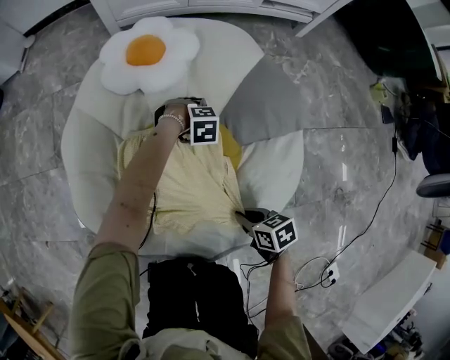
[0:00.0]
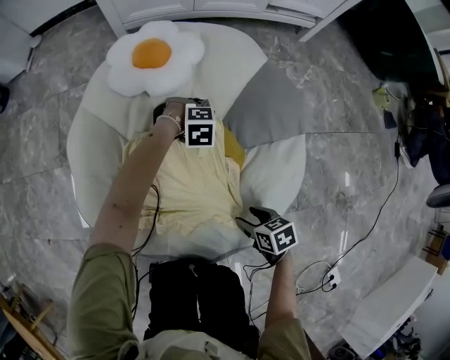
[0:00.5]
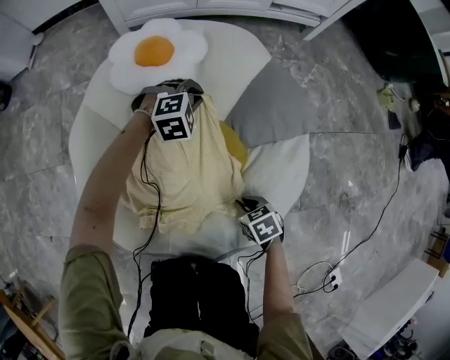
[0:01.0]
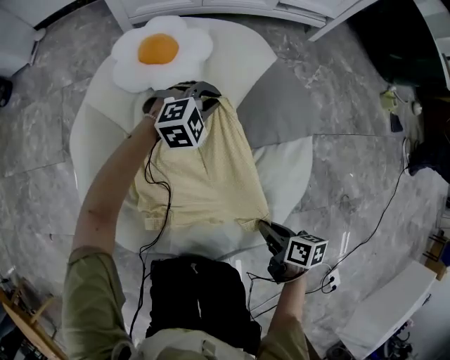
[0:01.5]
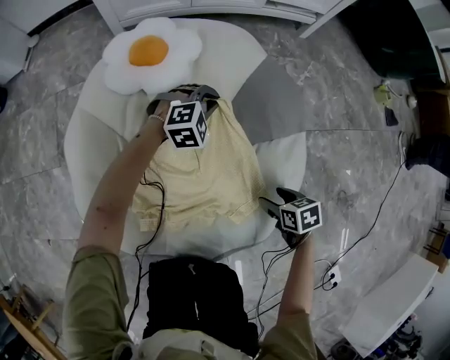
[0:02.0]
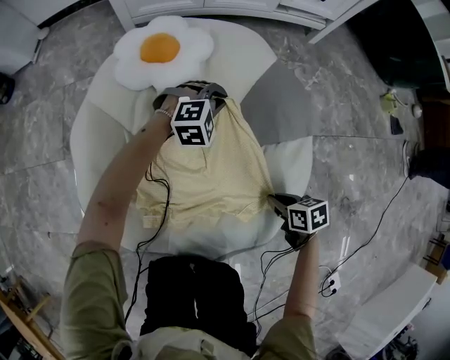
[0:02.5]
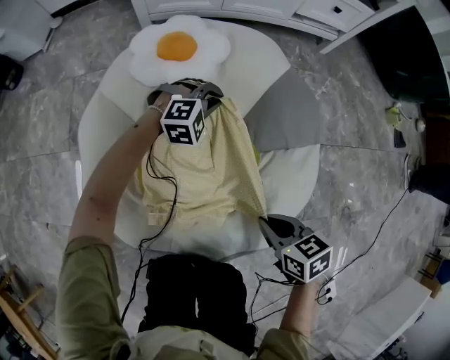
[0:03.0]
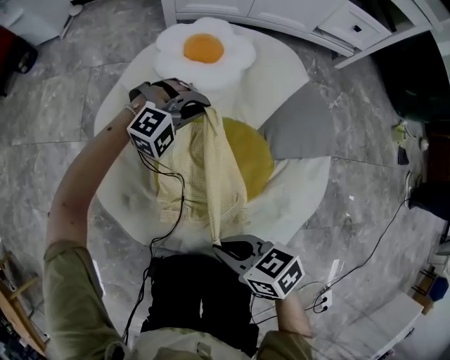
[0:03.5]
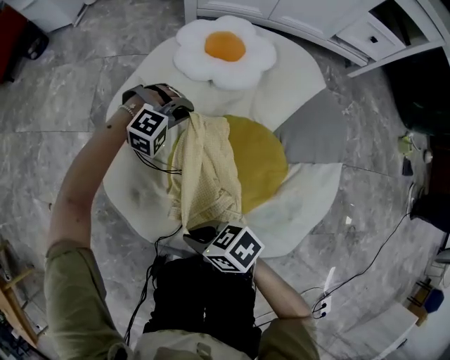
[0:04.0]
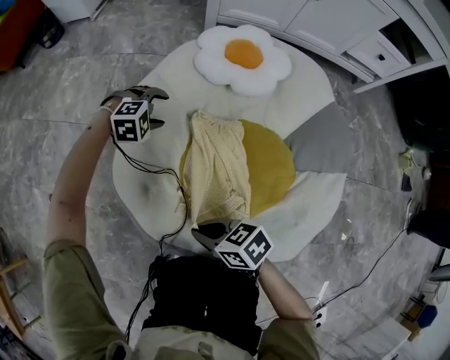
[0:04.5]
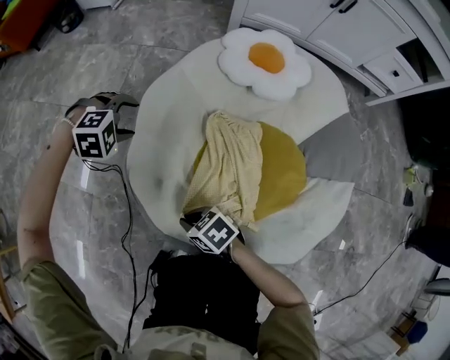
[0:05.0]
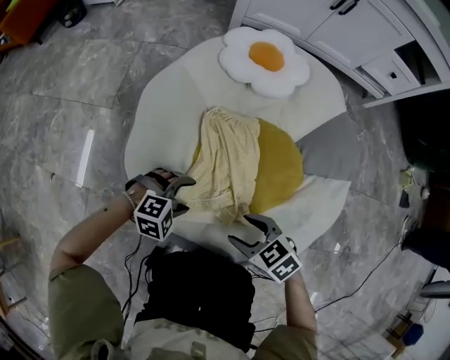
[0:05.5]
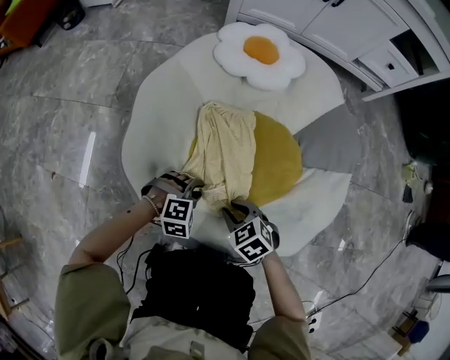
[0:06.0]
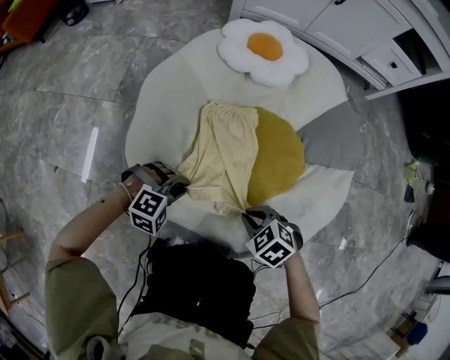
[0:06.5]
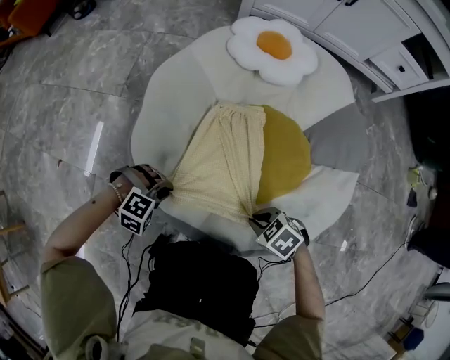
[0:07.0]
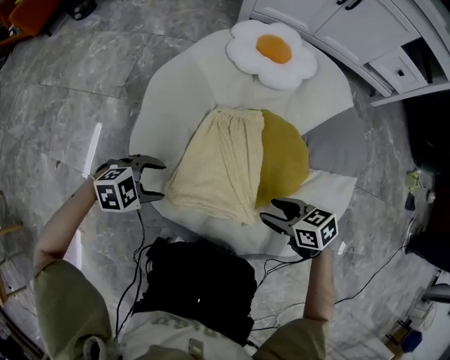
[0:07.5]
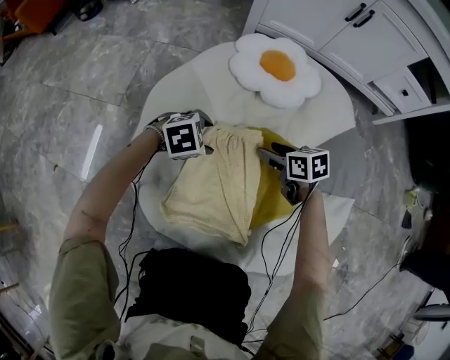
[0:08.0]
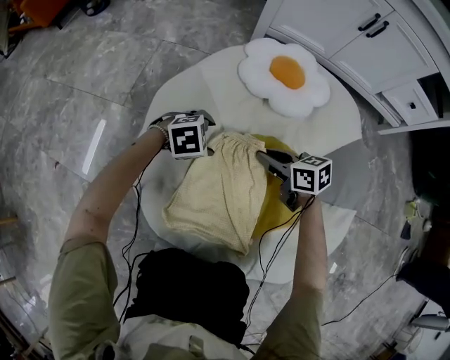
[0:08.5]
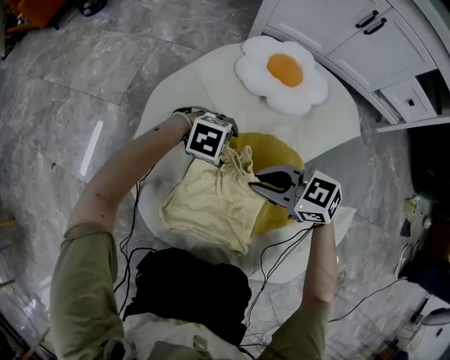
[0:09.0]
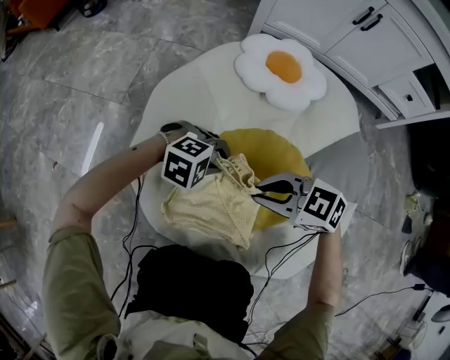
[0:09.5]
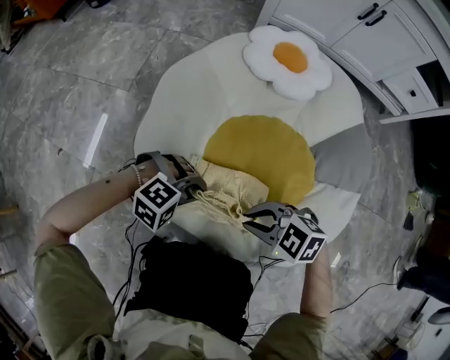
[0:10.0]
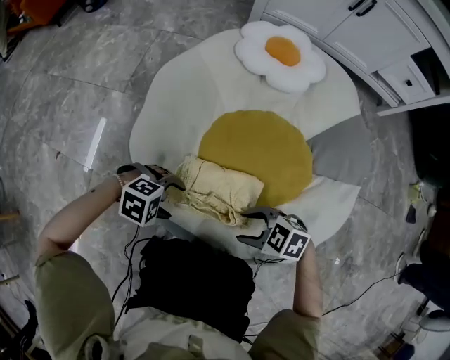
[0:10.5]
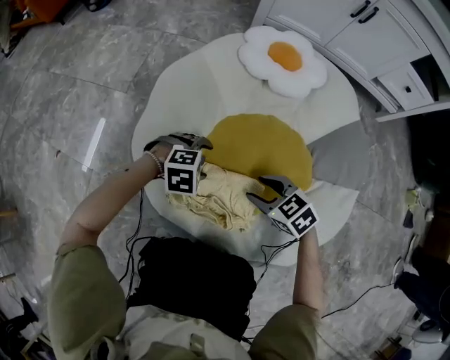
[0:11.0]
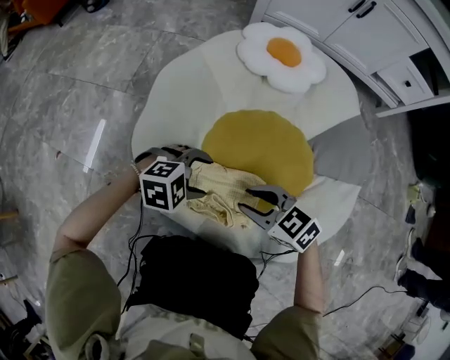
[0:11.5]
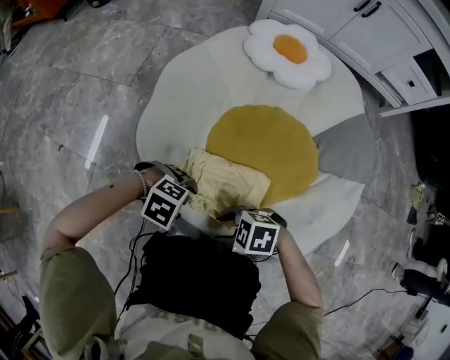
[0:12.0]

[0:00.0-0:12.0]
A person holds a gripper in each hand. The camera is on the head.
0:00.0 to 0:02.0: The left gripper shifts some 10 cm upward, angles its fingers upward, by approximately 30 degrees, and closes; the right gripper travels upward and back again, approximately 5 cm each way, and opens up.
0:02.0 to 0:04.0: The left gripper ends up approximately 25 cm from where it was, and swivels about 20 degrees. Meanwhile the right gripper changes place by about 40 cm, rotates about 50 degrees, and closes.
0:04.0 to 0:06.0: The right gripper swings up and down, some 10 cm each way, with 2 reversals, rotates approximately 40 degrees, and opens, then closes once more, while the left gripper ends up roughly 30 cm from where it was, changes its angle by roughly 30 degrees, and opens, then closes once more.
0:06.0 to 0:08.0: The left gripper shifts by some 20 cm, turns by some 30 degrees, and opens its fingers, while the right gripper ends up approximately 25 cm from where it was, changes its angle by about 30 degrees, and opens.
0:08.0 to 0:10.0: The left gripper shifts by approximately 20 cm, changes its angle by about 40 degrees, and closes. The right gripper moves roughly 25 cm, twists some 50 degrees counterclockwise, seen from behind, and closes.
0:10.0 to 0:12.0: The right gripper goes up and down, approximately 5 cm each way, reversing 2 times, and opens, while the left gripper moves up and down over about 5 cm, changing direction 2 times, turns by roughly 30 degrees, and opens its fingers.

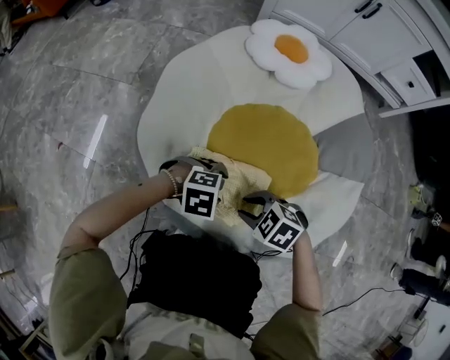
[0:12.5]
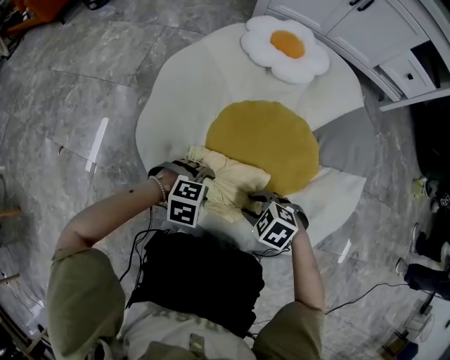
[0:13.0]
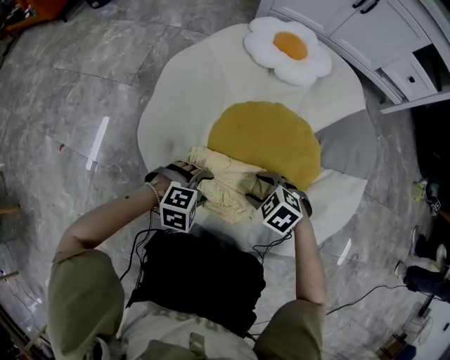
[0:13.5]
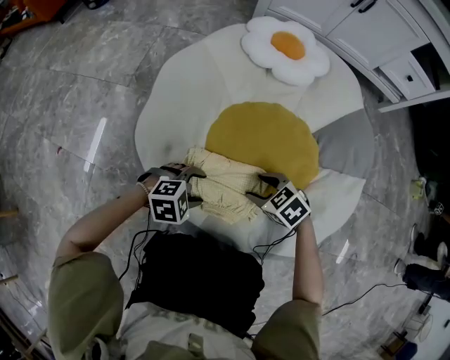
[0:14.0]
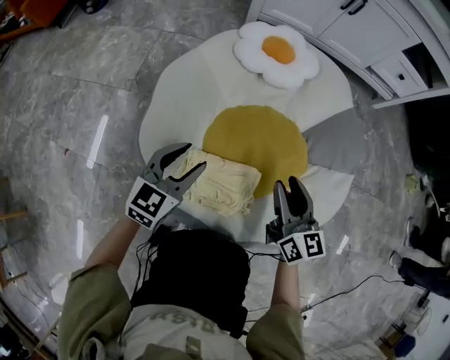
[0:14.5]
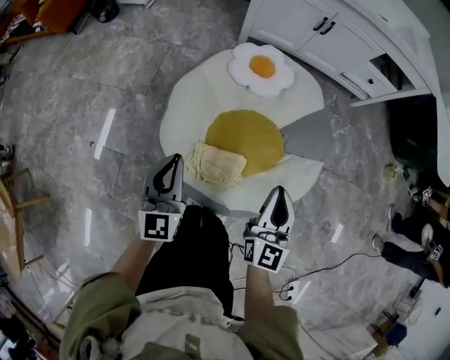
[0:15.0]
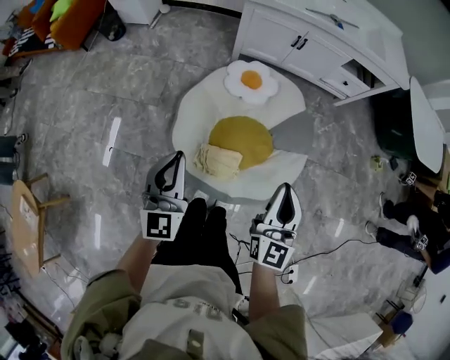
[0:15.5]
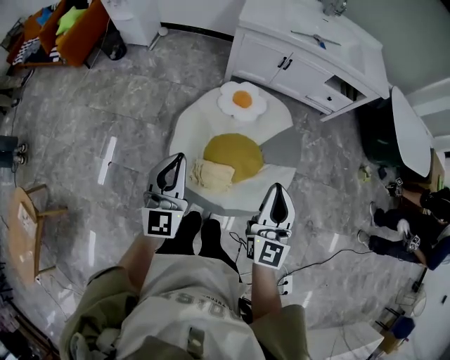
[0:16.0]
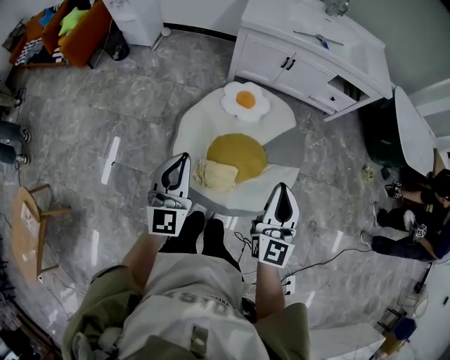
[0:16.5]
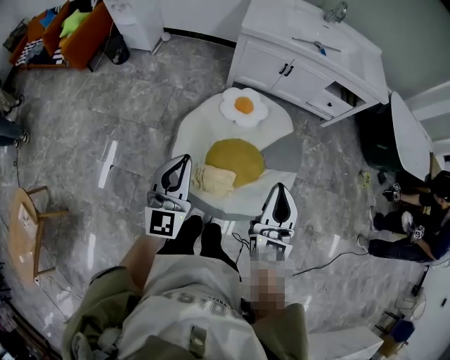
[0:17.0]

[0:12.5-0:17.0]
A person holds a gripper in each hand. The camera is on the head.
0:12.5 to 0:14.5: Both grippers move upward, about 15 cm. The left gripper tilts its fingers about 40 degrees upward. The right gripper angles its fingers upward, by about 50 degrees.
0:14.5 to 0:17.0: The grippers both shift upward by some 60 cm. The right gripper rotates approximately 30 degrees, and closes up; the left gripper turns by about 30 degrees, and closes.

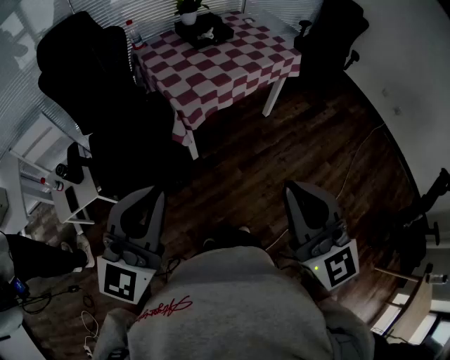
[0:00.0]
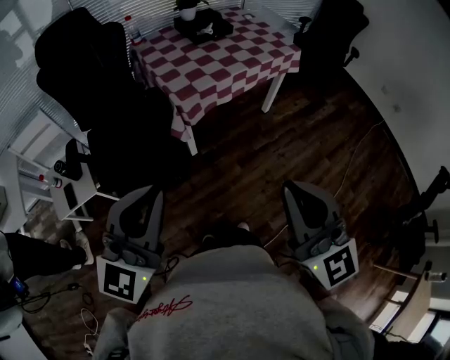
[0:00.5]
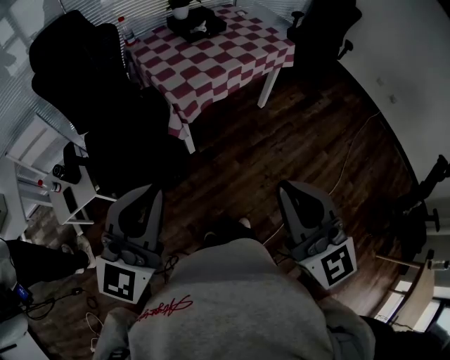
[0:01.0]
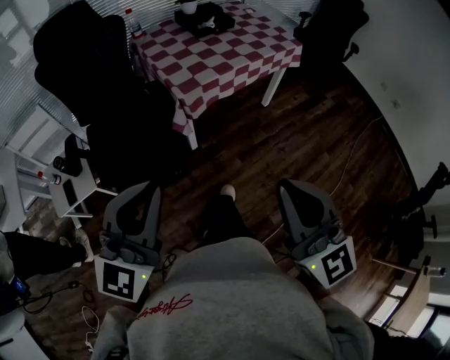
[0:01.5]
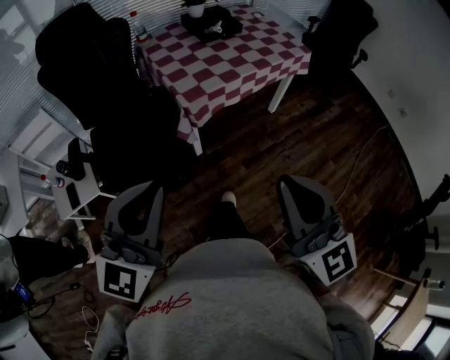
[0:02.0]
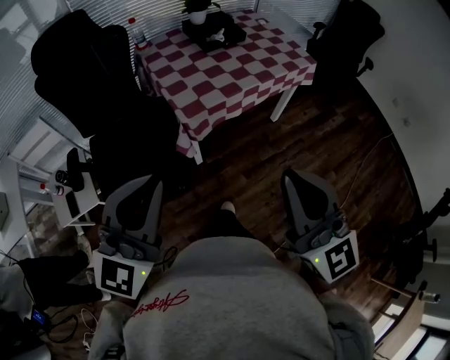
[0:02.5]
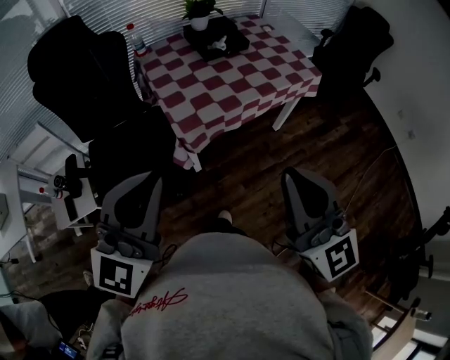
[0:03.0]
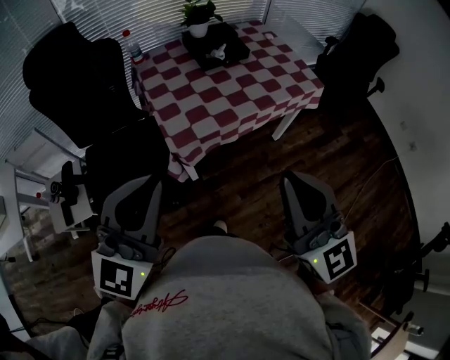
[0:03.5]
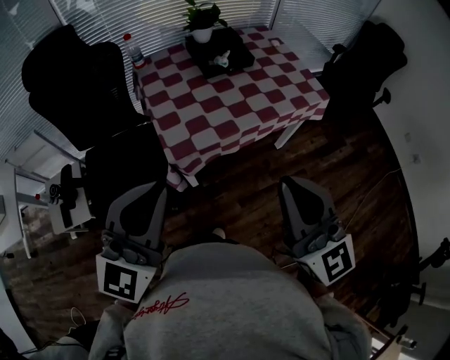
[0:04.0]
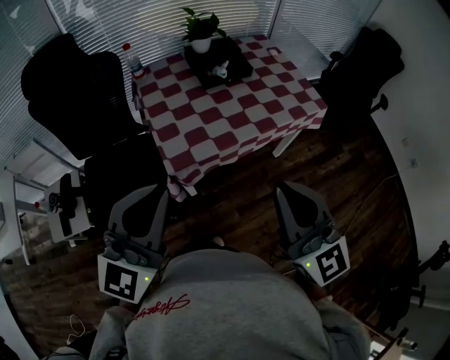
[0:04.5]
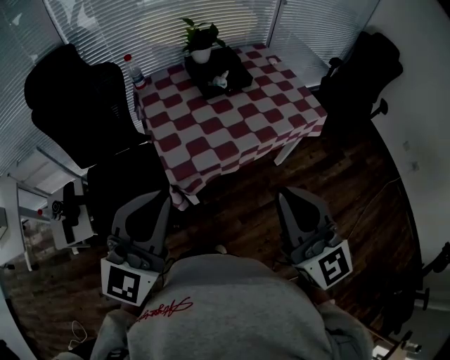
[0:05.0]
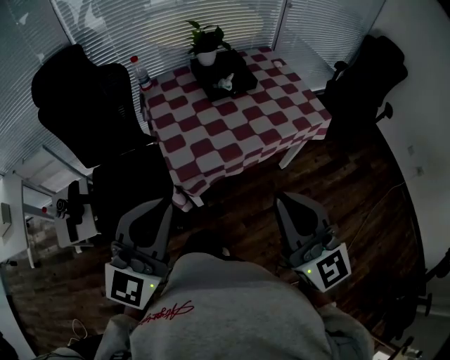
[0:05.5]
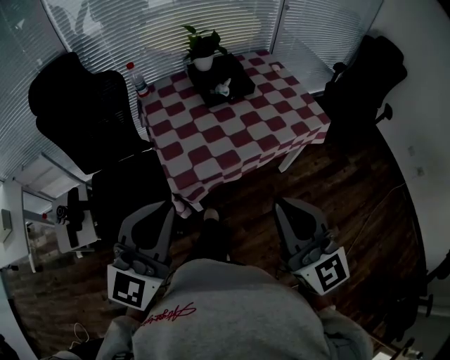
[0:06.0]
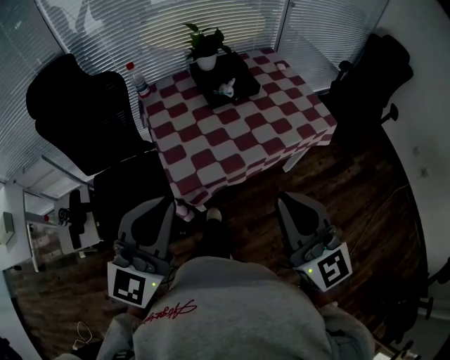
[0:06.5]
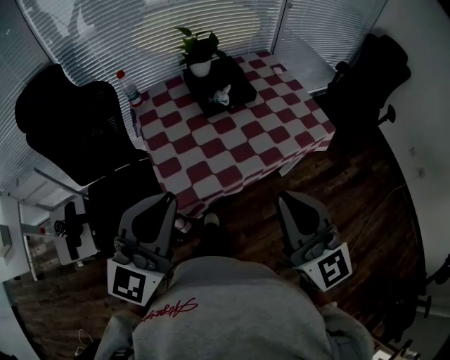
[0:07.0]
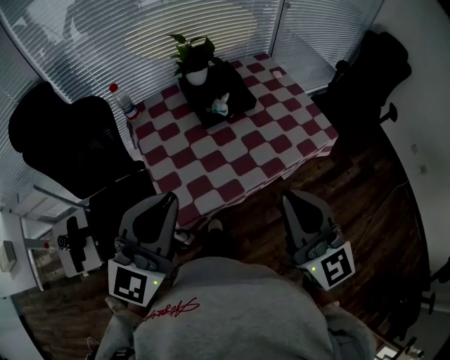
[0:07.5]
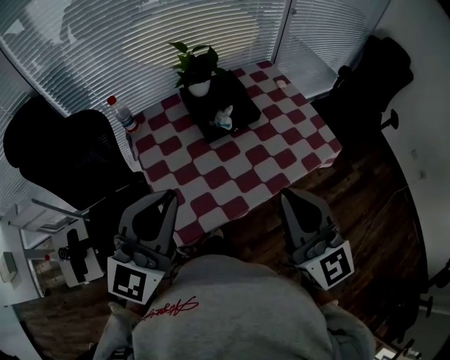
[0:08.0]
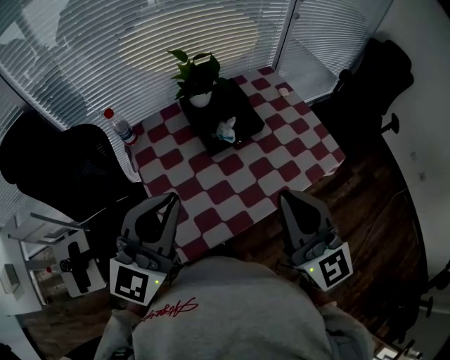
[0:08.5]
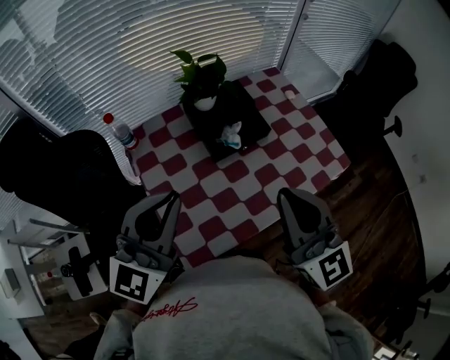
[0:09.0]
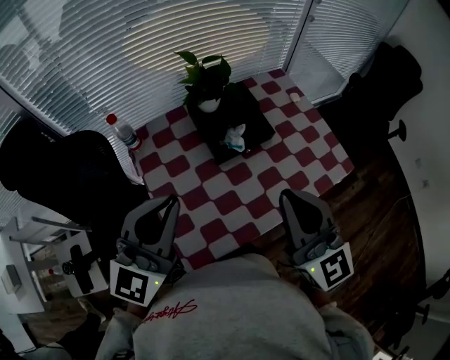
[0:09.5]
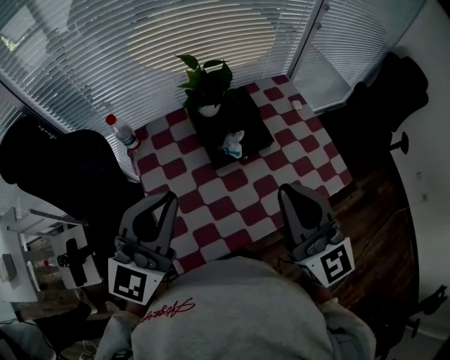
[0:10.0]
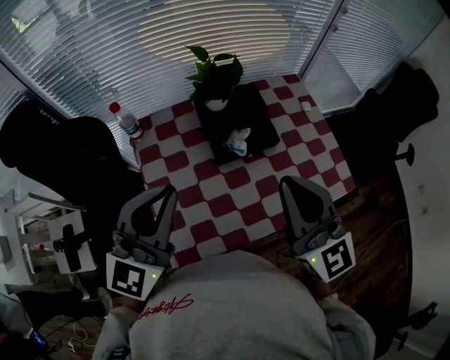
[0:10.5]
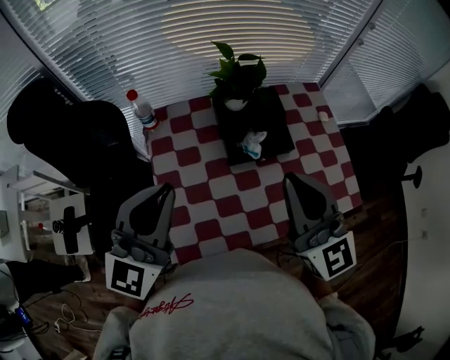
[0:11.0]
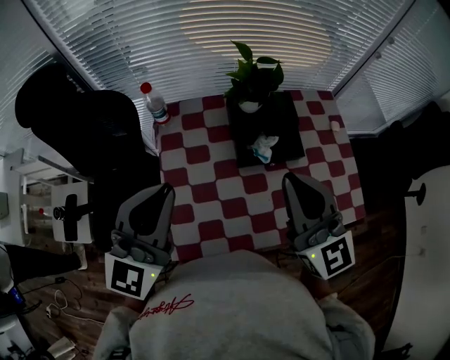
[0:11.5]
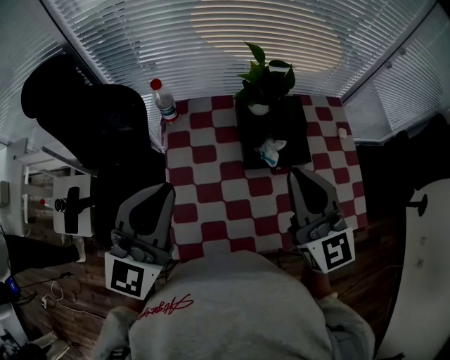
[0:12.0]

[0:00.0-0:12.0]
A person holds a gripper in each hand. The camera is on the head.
0:00.0 to 0:02.0: The right gripper shifts by roughly 5 cm.
0:02.0 to 0:04.0: Both grippers travel together forward, roughly 25 cm.
0:04.0 to 0:06.0: The grippers make only small movements.
0:06.0 to 0:08.0: Both grippers move forward, some 20 cm.
0:08.0 to 0:10.0: Both grippers travel together forward, roughly 15 cm.
0:10.0 to 0:12.0: The left gripper travels to the left by approximately 5 cm, and swivels roughly 20 degrees; the right gripper is displaced forward by approximately 10 cm.
